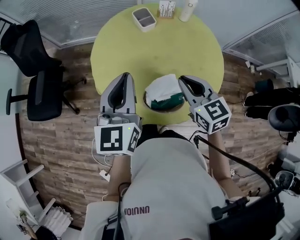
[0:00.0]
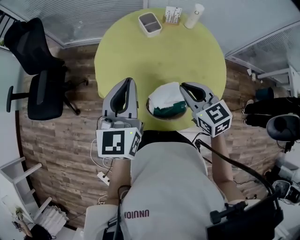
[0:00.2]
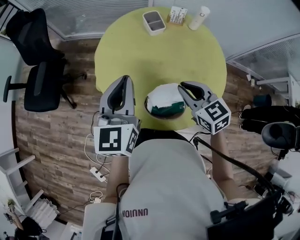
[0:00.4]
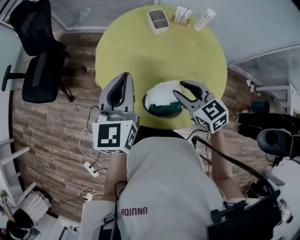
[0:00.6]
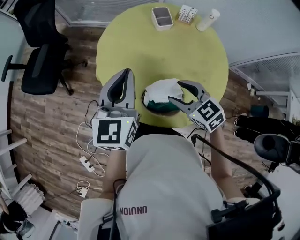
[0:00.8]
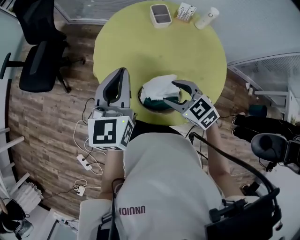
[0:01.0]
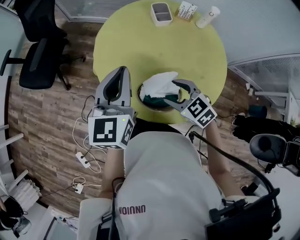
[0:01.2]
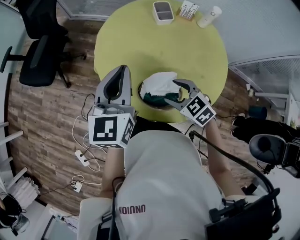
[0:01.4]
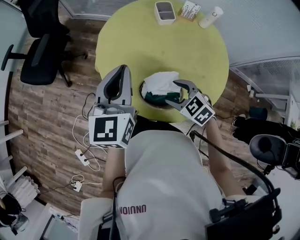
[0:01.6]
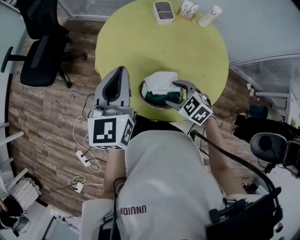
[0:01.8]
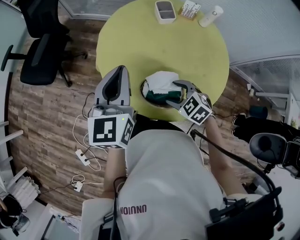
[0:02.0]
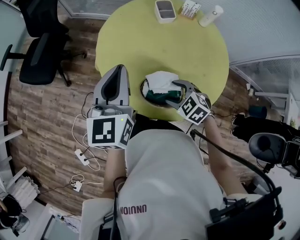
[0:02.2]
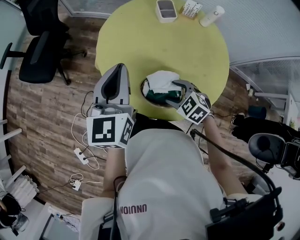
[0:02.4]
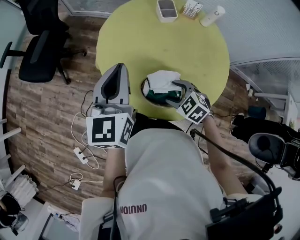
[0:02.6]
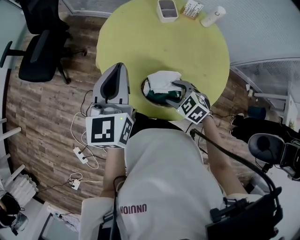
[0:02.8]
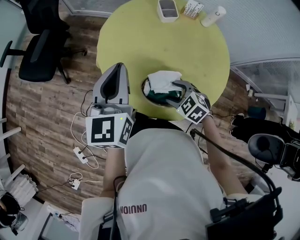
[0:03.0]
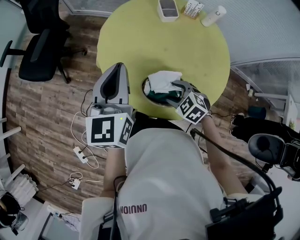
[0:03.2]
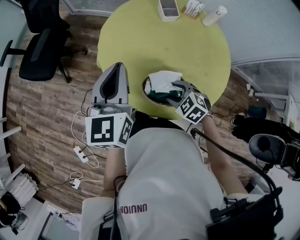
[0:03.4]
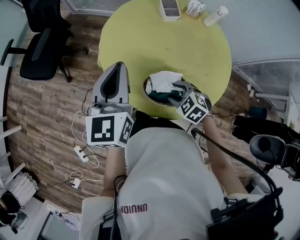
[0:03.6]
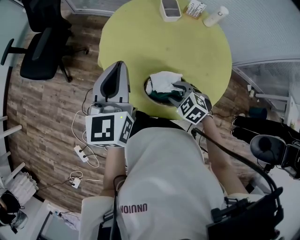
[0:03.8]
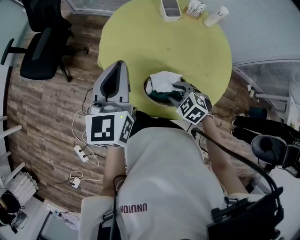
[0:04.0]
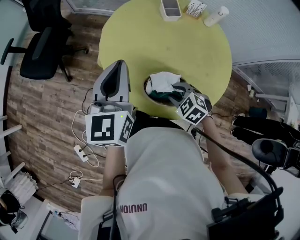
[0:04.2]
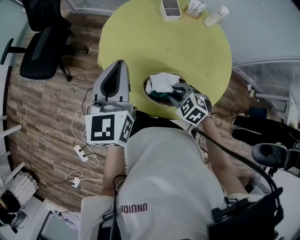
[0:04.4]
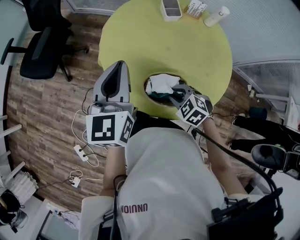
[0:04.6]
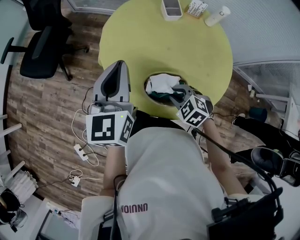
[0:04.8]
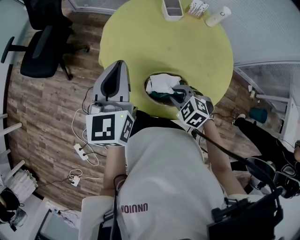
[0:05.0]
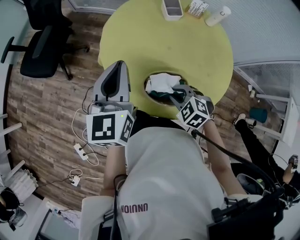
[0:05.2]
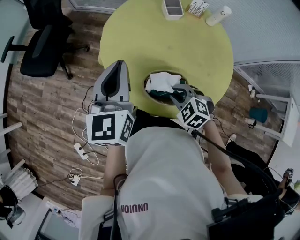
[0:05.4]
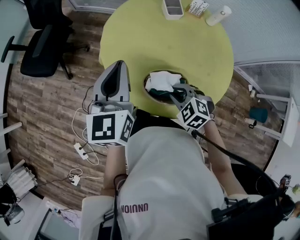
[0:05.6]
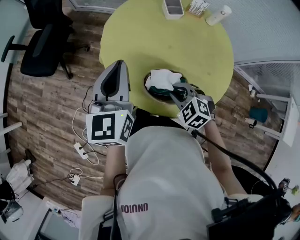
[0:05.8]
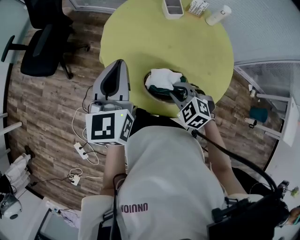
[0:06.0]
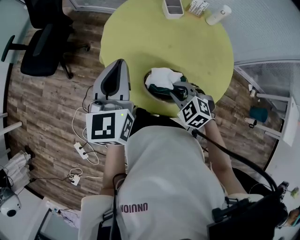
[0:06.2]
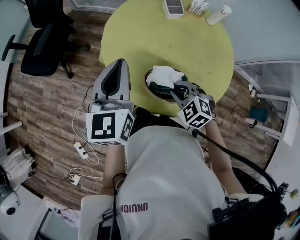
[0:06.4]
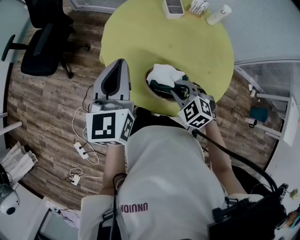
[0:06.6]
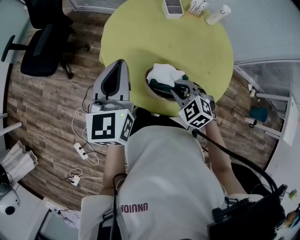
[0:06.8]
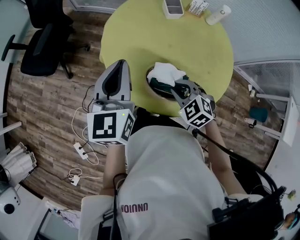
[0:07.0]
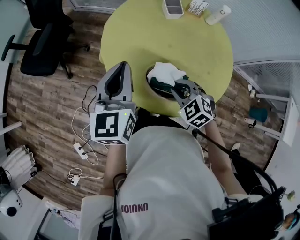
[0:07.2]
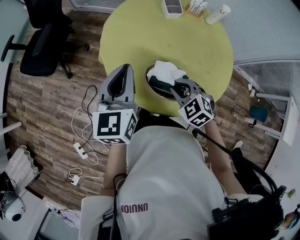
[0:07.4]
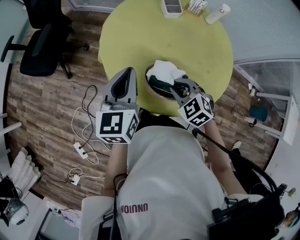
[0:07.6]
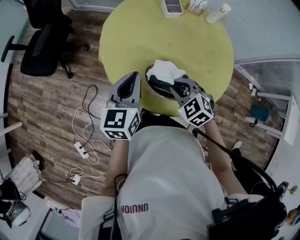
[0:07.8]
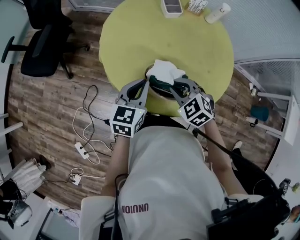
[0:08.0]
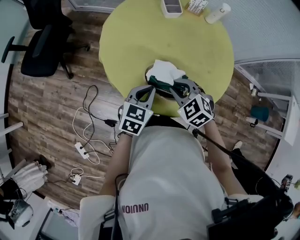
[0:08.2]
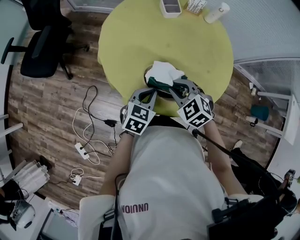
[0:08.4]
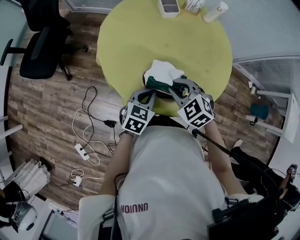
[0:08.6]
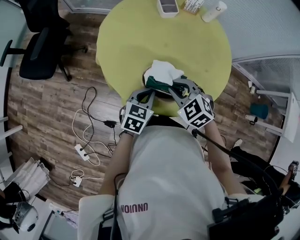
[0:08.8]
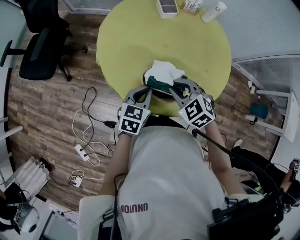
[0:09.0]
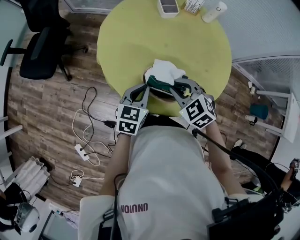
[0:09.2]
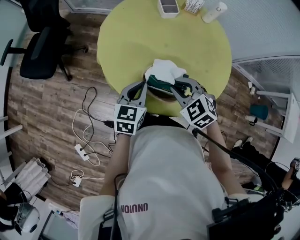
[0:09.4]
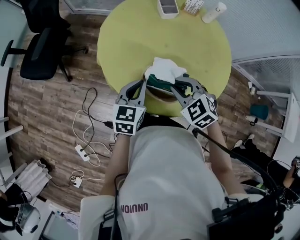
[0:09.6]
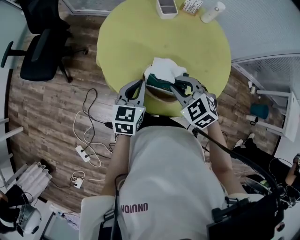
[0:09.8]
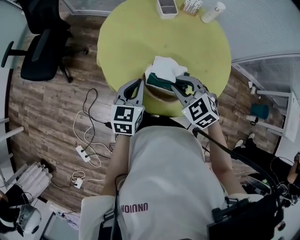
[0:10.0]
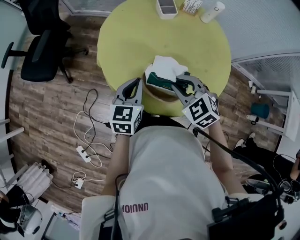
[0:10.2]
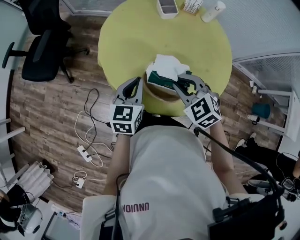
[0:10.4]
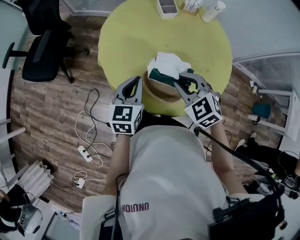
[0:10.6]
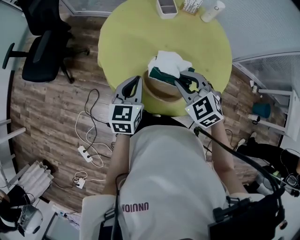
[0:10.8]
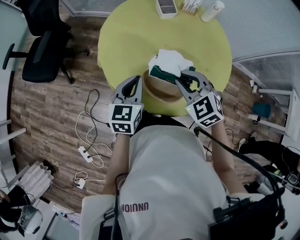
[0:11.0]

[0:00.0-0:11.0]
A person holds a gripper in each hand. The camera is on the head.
0:00.0 to 0:01.6: The right gripper moves downward, approximately 10 cm, swivels about 50 degrees, and opens up.
0:01.6 to 0:03.2: The grippers stay close to where they were, moving slightly.
0:03.2 to 0:04.8: The right gripper closes.
0:04.8 to 0:06.2: The grippers make only small movements.
0:06.2 to 0:07.8: The left gripper travels downward by some 10 cm.
0:07.8 to 0:09.4: The left gripper heads downward, covering approximately 10 cm.
0:09.4 to 0:11.0: The right gripper shifts by some 5 cm.

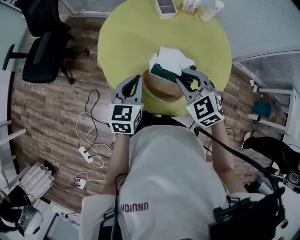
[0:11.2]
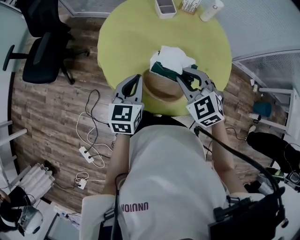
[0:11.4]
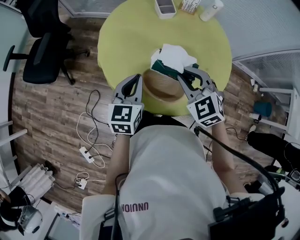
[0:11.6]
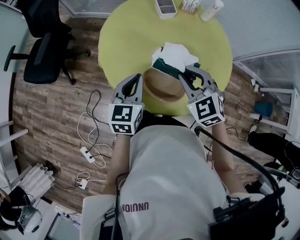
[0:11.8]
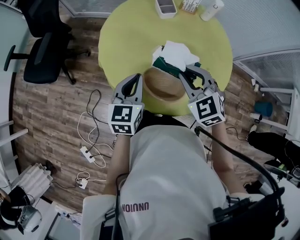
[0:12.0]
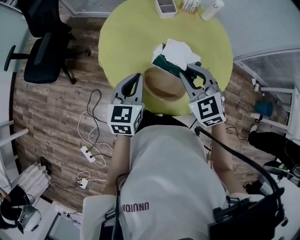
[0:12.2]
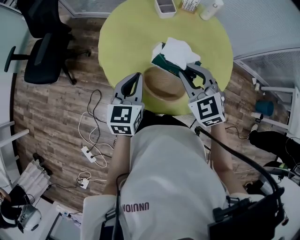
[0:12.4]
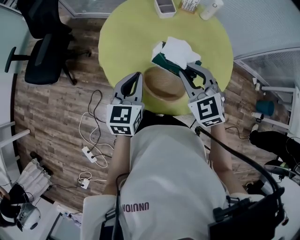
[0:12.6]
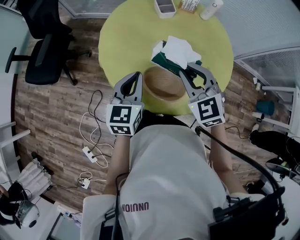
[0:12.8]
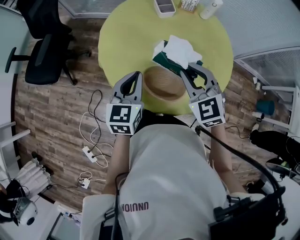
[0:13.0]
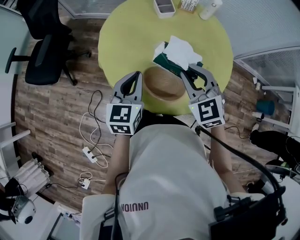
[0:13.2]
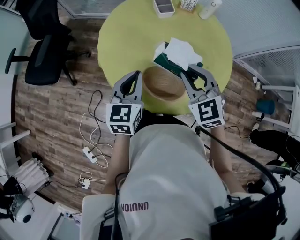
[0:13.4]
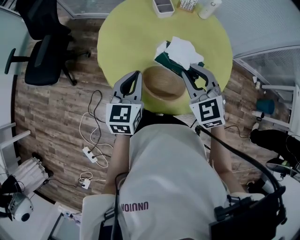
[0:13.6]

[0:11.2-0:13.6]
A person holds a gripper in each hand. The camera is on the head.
0:11.2 to 0:12.4: There are only small adjustments of the grippers.
0:12.4 to 0:13.6: Both grippers stay about where they are.

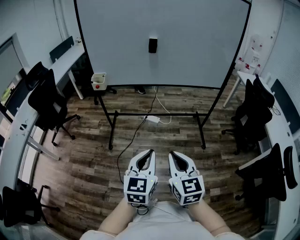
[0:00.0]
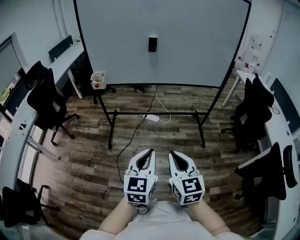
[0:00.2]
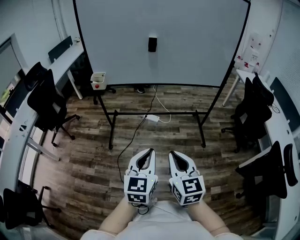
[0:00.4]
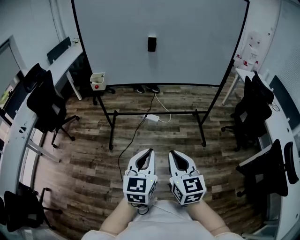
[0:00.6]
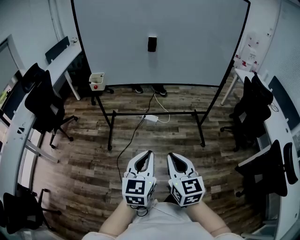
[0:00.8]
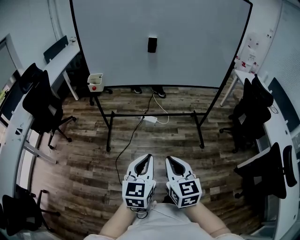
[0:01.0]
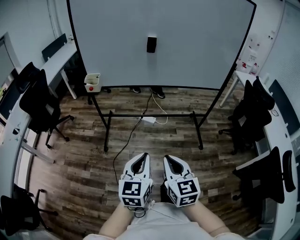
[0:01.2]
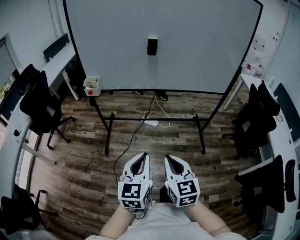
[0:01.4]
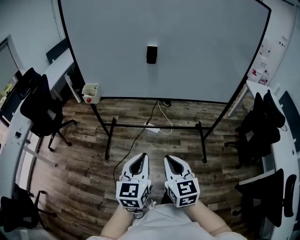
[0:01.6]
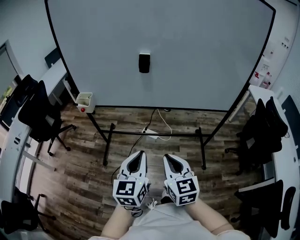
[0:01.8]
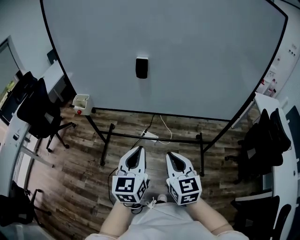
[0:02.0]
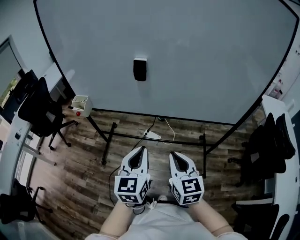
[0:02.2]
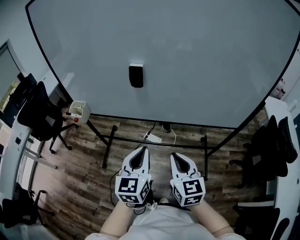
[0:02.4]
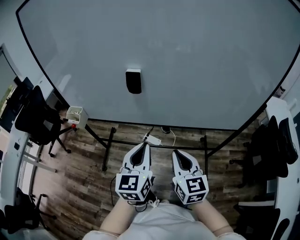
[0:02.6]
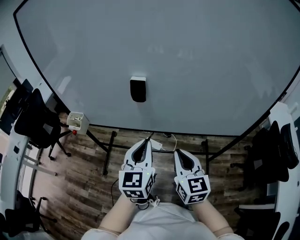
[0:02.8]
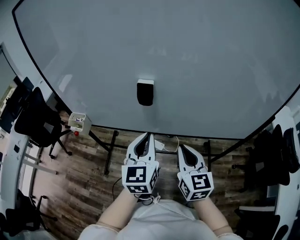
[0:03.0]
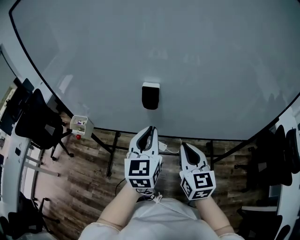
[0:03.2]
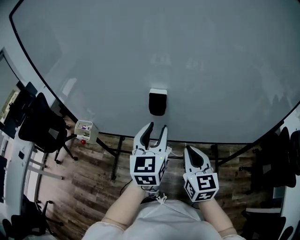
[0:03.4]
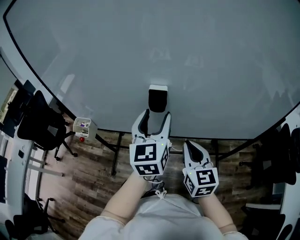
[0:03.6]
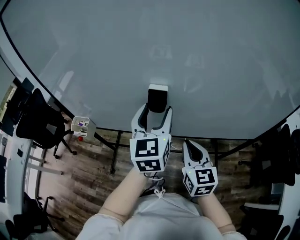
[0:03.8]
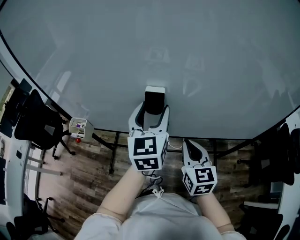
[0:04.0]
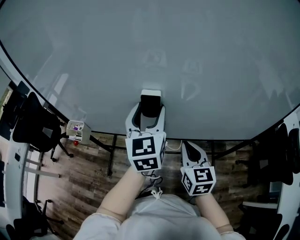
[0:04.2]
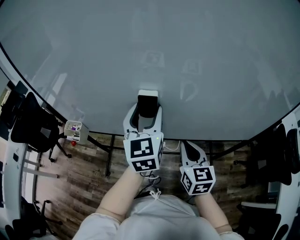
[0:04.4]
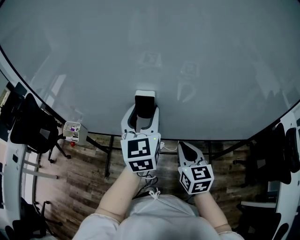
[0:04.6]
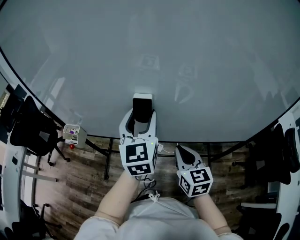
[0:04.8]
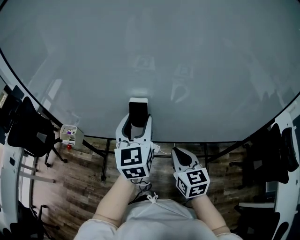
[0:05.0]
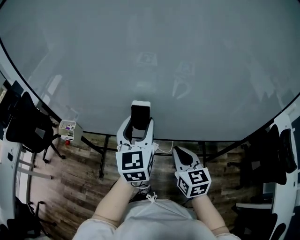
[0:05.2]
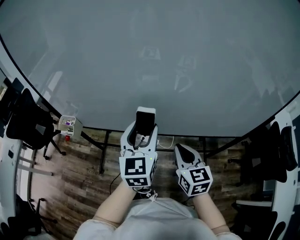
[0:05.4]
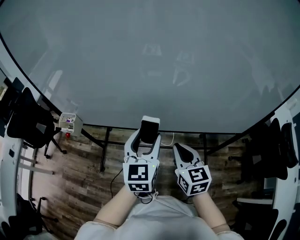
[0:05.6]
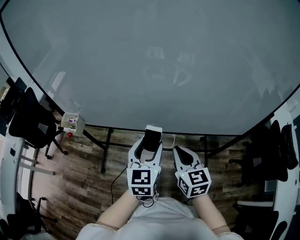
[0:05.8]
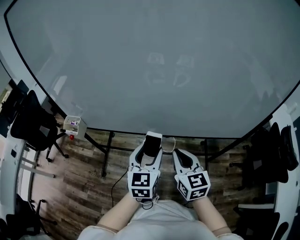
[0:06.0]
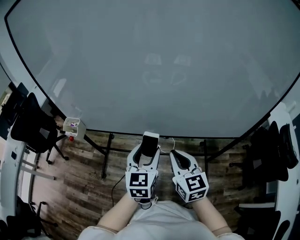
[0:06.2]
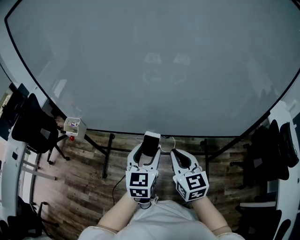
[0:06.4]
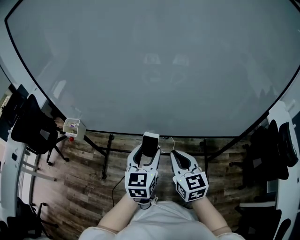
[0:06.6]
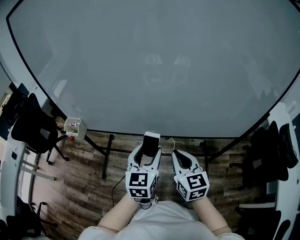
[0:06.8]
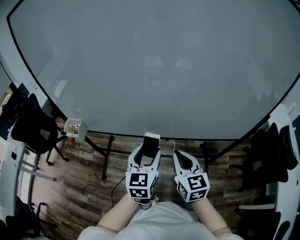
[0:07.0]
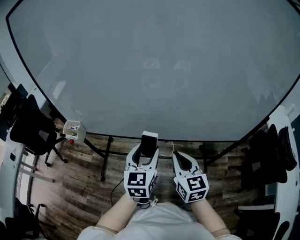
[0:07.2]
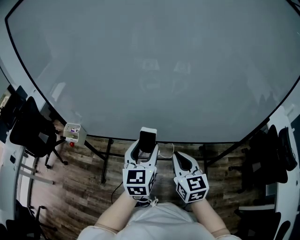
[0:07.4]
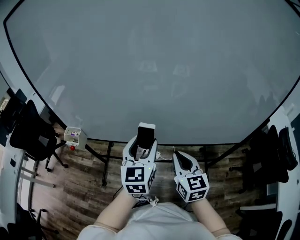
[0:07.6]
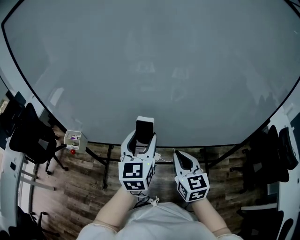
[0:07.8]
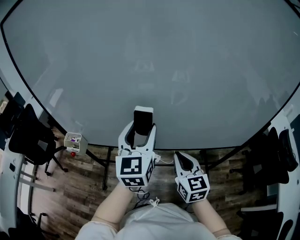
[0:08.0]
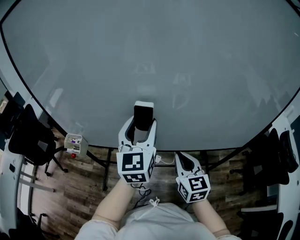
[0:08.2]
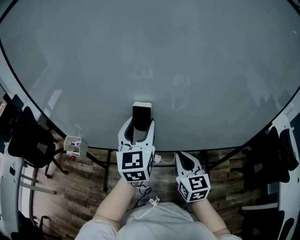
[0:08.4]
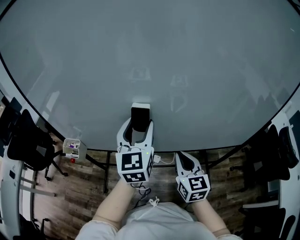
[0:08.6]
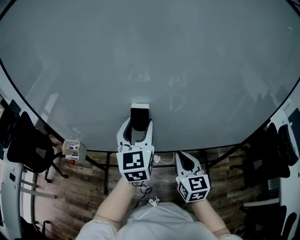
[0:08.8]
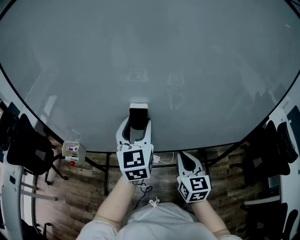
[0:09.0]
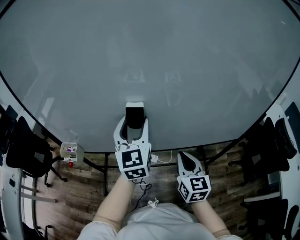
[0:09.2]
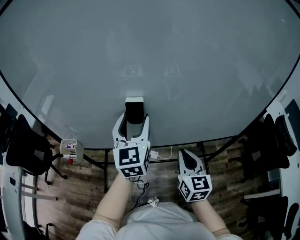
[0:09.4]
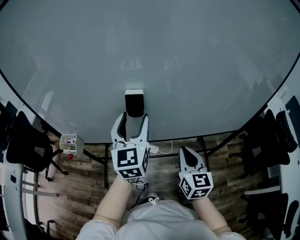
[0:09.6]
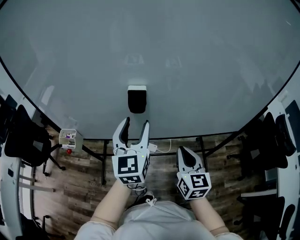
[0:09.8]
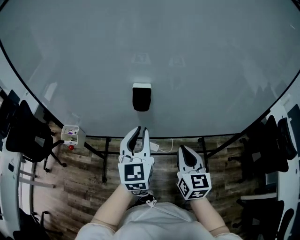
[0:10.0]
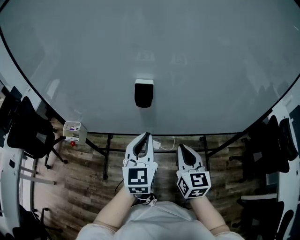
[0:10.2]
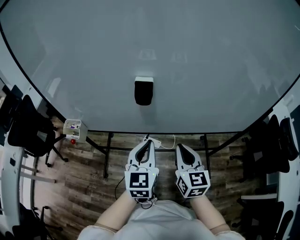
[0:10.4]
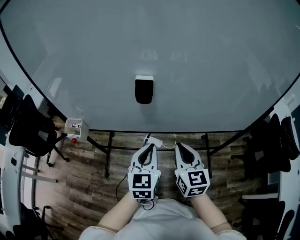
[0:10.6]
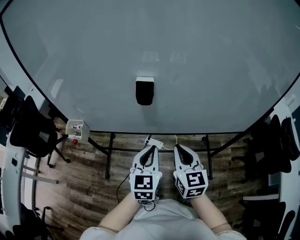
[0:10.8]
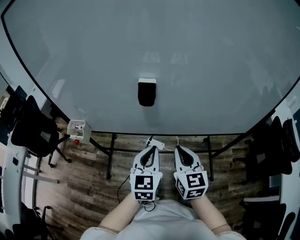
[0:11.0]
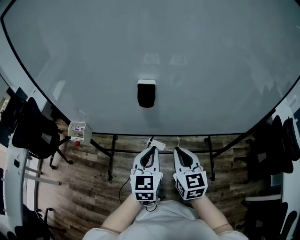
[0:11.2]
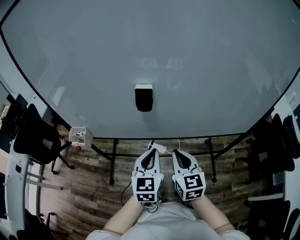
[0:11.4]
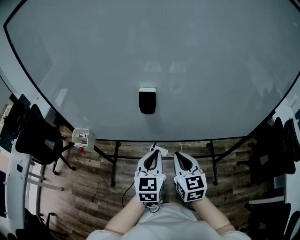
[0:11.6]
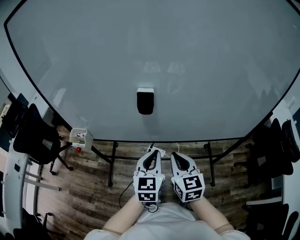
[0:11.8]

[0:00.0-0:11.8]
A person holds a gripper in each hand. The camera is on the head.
0:00.0 to 0:01.4: Both grippers travel together forward, some 10 cm.
0:01.4 to 0:03.0: Both grippers are carried forward, about 40 cm.
0:03.0 to 0:04.4: The right gripper travels forward by approximately 5 cm; the left gripper is displaced forward by roughly 15 cm, and opens up.
0:04.4 to 0:06.0: The left gripper travels backward and downward by about 20 cm; the right gripper moves backward, about 5 cm.
0:06.0 to 0:07.4: The left gripper shifts by some 5 cm.
0:07.4 to 0:08.8: The right gripper heads forward, covering approximately 5 cm, while the left gripper heads forward and upward, covering approximately 15 cm.
0:08.8 to 0:10.4: The left gripper goes approximately 15 cm backward and downward, and closes, while the right gripper is displaced backward by approximately 5 cm.
0:10.4 to 0:11.8: The grippers stay close to where they were, moving slightly.
